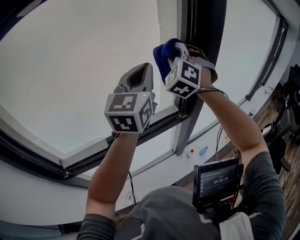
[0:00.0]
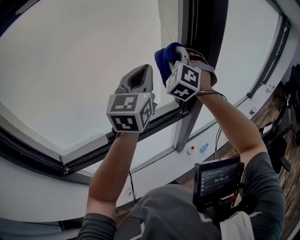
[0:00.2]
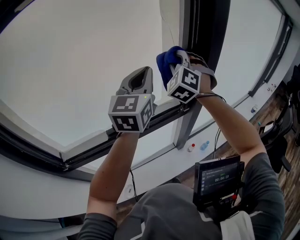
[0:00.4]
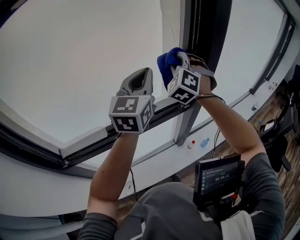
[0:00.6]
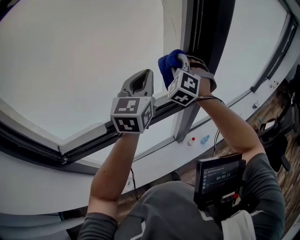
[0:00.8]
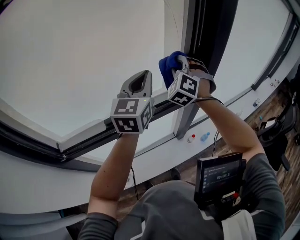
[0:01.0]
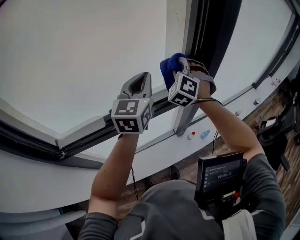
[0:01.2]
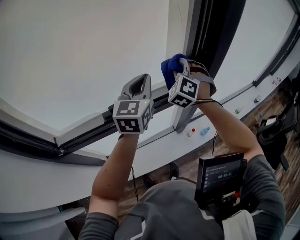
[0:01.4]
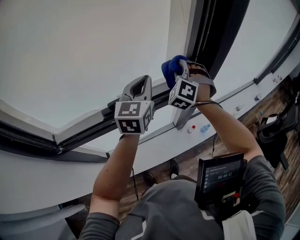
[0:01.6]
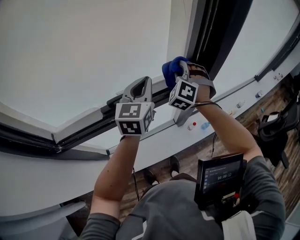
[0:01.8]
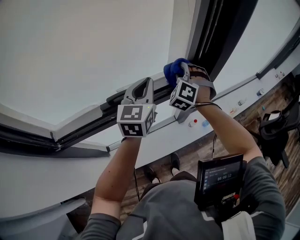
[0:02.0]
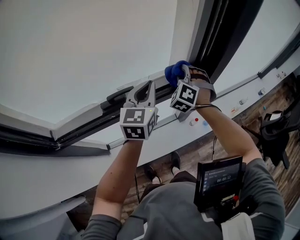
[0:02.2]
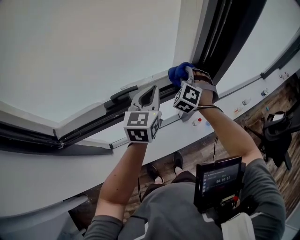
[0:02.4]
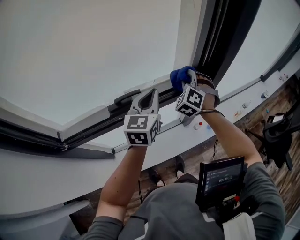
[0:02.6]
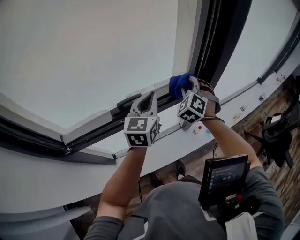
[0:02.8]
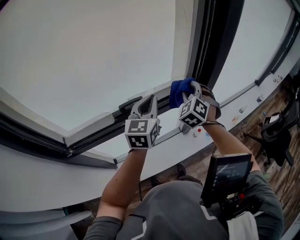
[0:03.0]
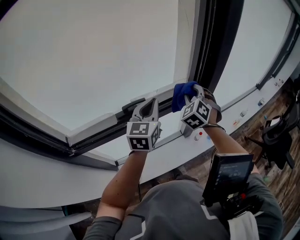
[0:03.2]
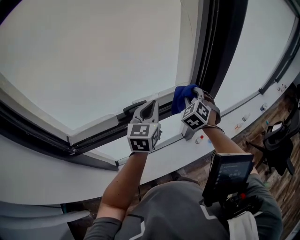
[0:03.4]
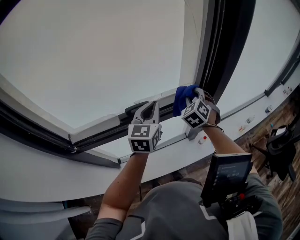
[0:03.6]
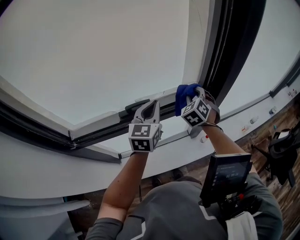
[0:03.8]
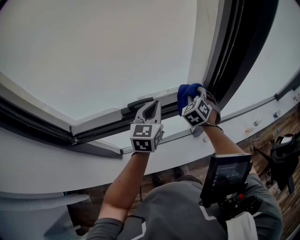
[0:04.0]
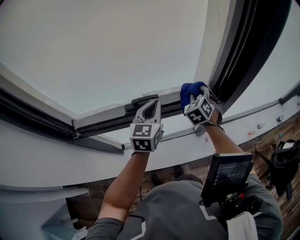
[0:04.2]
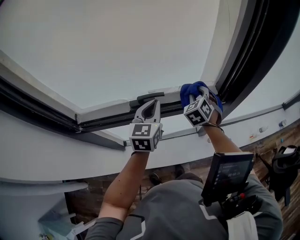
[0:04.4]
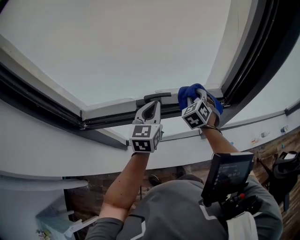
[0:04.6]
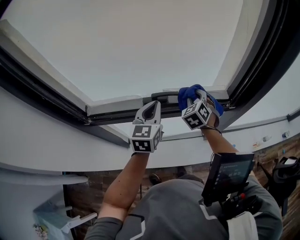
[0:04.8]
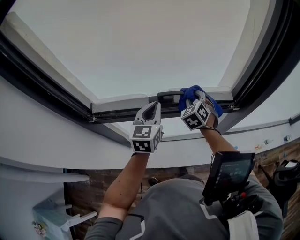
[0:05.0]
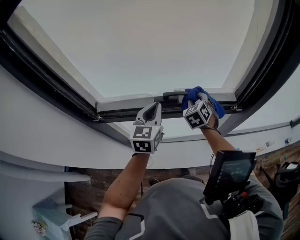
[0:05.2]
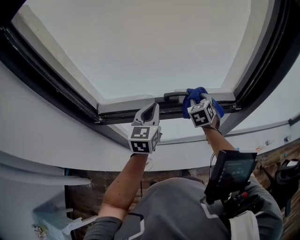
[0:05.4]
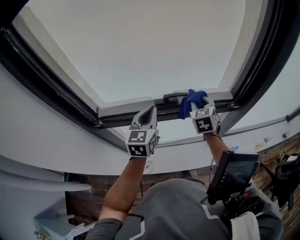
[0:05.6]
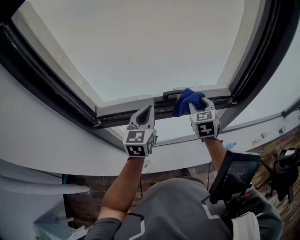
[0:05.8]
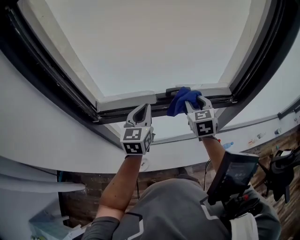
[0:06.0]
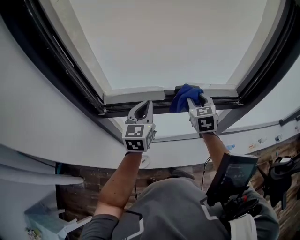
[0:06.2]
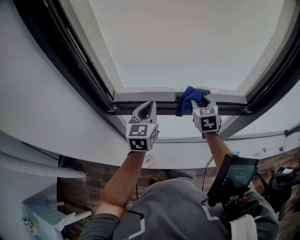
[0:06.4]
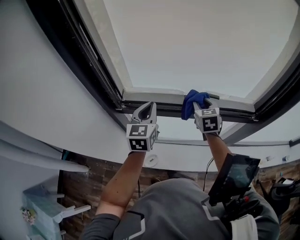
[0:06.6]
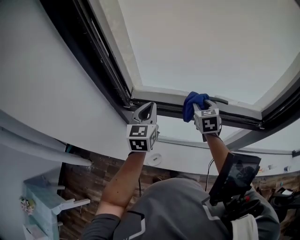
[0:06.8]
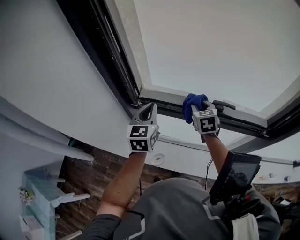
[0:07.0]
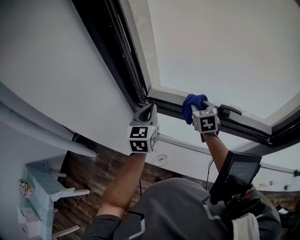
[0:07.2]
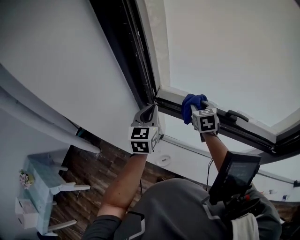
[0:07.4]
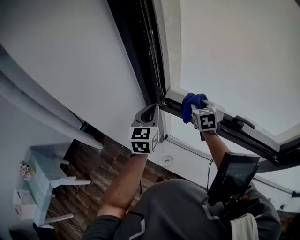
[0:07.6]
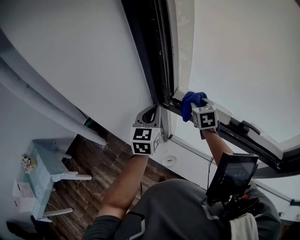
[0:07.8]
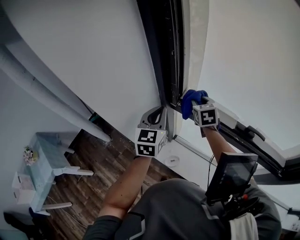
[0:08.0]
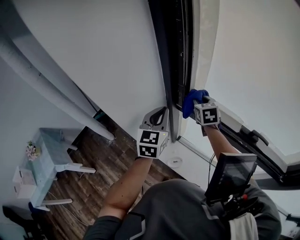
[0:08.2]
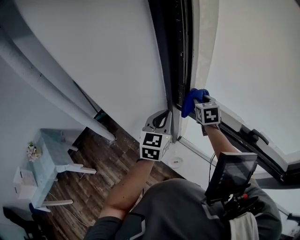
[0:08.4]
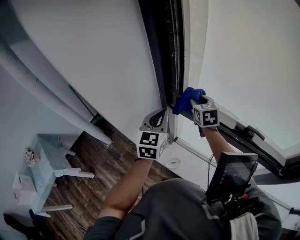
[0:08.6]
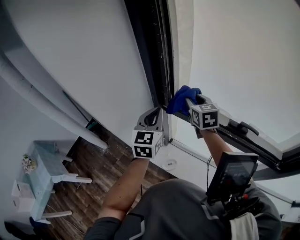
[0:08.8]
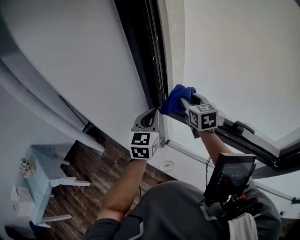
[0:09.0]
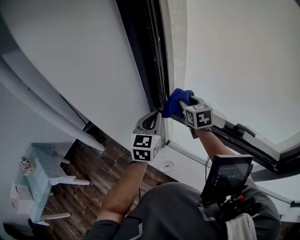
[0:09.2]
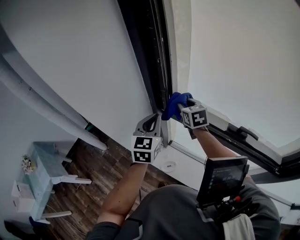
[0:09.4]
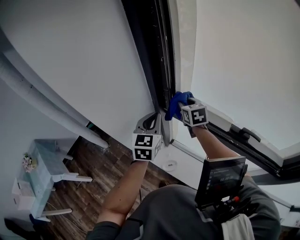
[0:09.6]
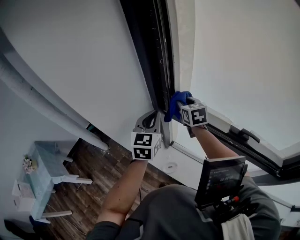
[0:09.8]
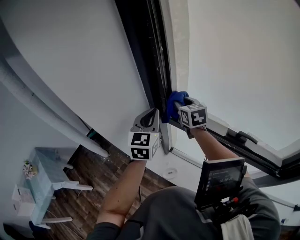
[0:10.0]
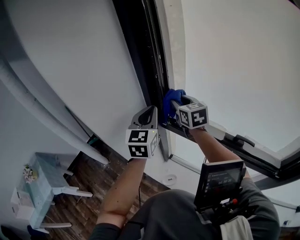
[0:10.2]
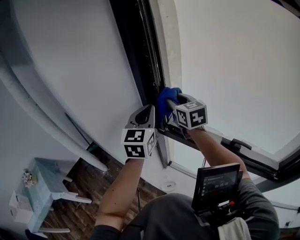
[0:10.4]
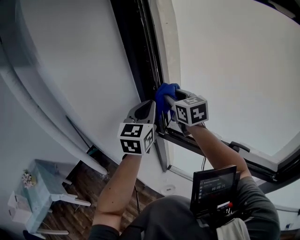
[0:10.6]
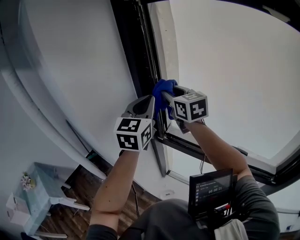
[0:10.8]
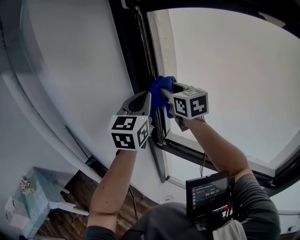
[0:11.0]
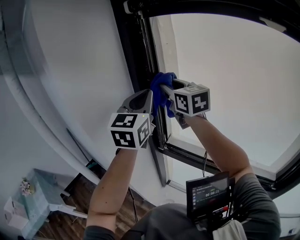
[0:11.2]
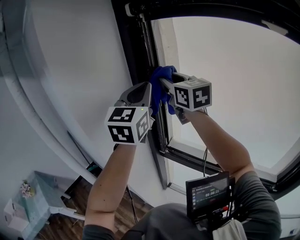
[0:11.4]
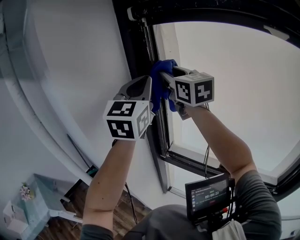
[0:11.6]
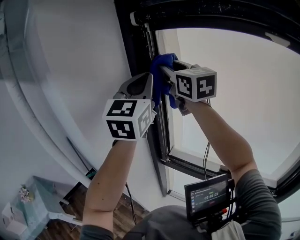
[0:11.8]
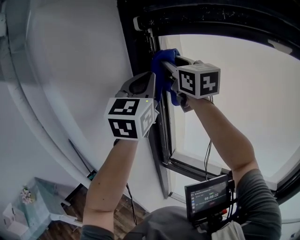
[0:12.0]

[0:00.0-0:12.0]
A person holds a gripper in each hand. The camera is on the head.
0:00.0 to 0:01.6: The two grippers go about 20 cm downward.
0:01.6 to 0:03.0: The two grippers go about 5 cm backward. The right gripper reaches some 10 cm downward, then returns.
0:03.0 to 0:04.4: The left gripper moves to the left and downward, about 10 cm, while the right gripper travels downward, to the left and forward by roughly 10 cm.
0:04.4 to 0:06.0: The right gripper heads to the left, backward and upward, covering some 20 cm, and rotates approximately 30 degrees. Meanwhile the left gripper heads to the left and backward, covering roughly 20 cm.
0:06.0 to 0:07.6: The left gripper shifts by about 25 cm, and changes its angle by approximately 30 degrees; the right gripper ends up some 30 cm from where it was, and rotates roughly 30 degrees.
0:07.6 to 0:09.0: The right gripper is displaced upward and to the left by roughly 10 cm.
0:09.0 to 0:10.4: Both grippers move upward, about 10 cm.
0:10.4 to 0:12.0: The two grippers go some 30 cm upward. The right gripper swivels some 30 degrees, while the left gripper rotates about 20 degrees.

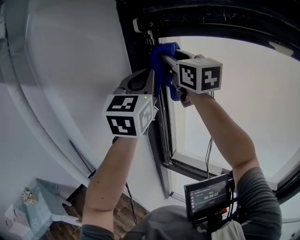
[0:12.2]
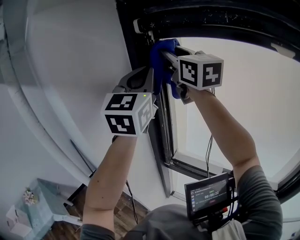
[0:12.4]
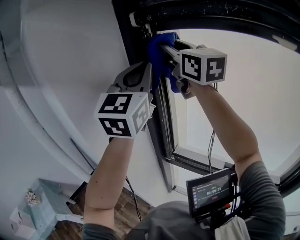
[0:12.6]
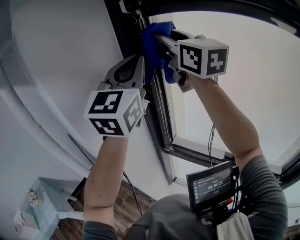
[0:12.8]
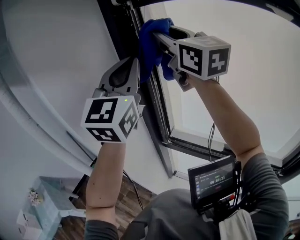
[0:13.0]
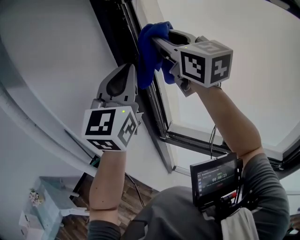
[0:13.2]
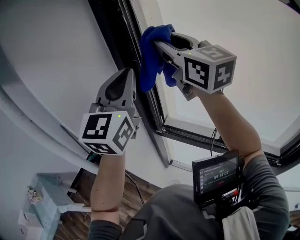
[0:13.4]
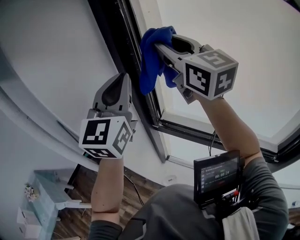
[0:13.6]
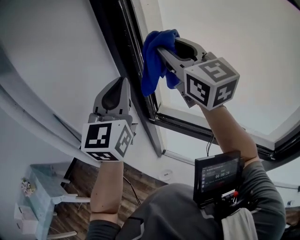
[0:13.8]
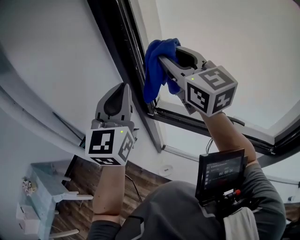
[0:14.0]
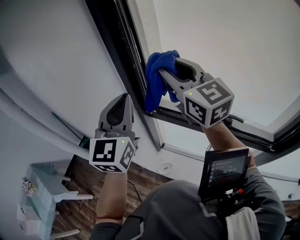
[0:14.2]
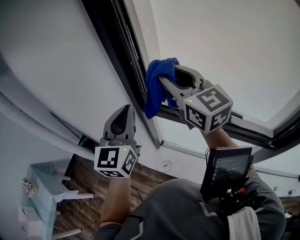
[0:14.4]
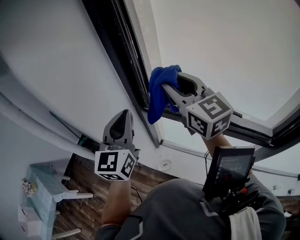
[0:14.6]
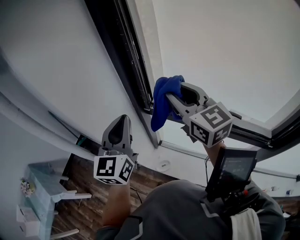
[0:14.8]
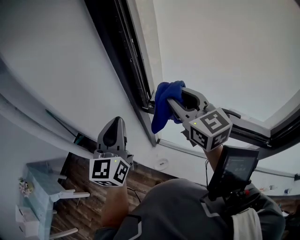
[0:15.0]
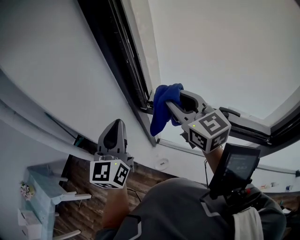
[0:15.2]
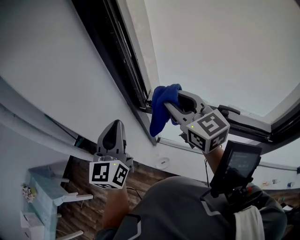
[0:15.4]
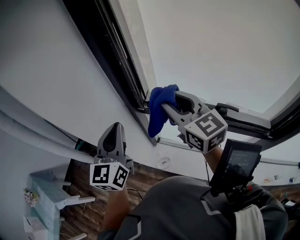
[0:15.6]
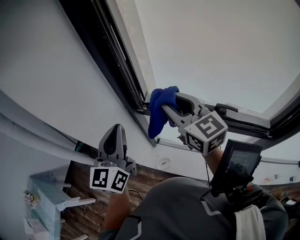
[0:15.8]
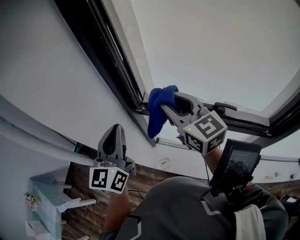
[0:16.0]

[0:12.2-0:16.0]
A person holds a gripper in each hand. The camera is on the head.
0:12.2 to 0:13.4: The left gripper travels downward by approximately 10 cm. The right gripper is displaced downward and backward by roughly 10 cm.
0:13.4 to 0:14.8: The left gripper moves downward, approximately 20 cm. The right gripper goes about 25 cm downward and backward.
0:14.8 to 0:16.0: The grippers make only small movements.

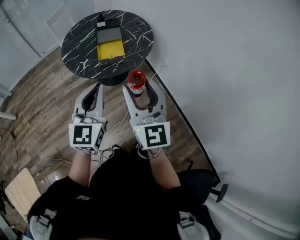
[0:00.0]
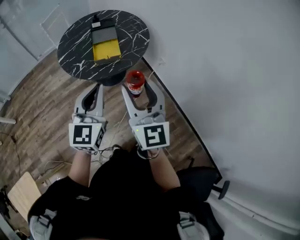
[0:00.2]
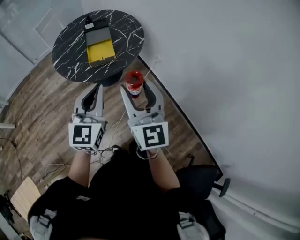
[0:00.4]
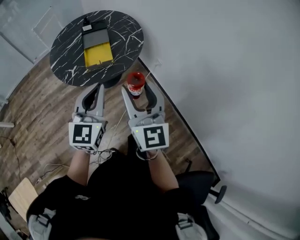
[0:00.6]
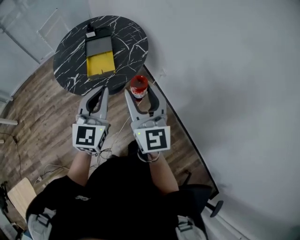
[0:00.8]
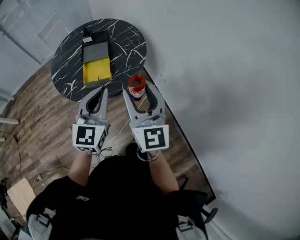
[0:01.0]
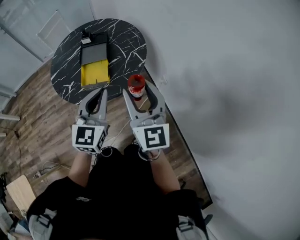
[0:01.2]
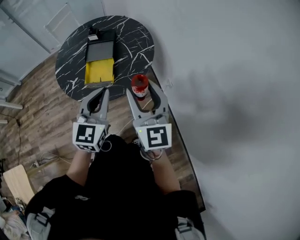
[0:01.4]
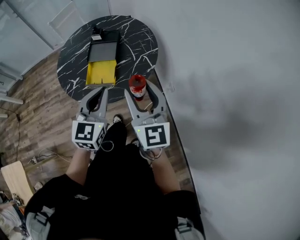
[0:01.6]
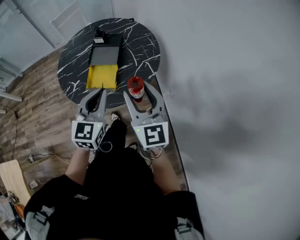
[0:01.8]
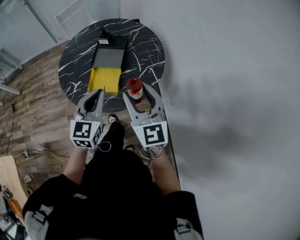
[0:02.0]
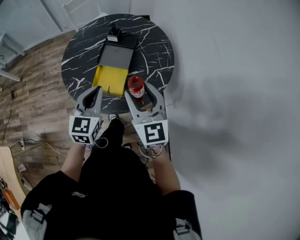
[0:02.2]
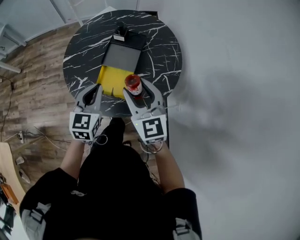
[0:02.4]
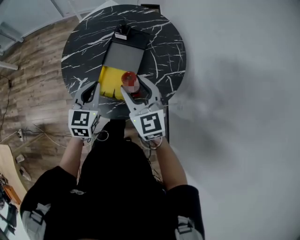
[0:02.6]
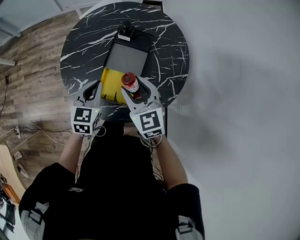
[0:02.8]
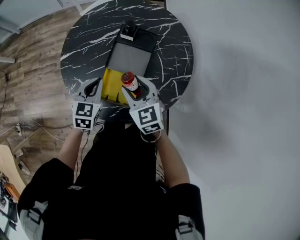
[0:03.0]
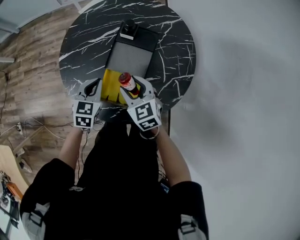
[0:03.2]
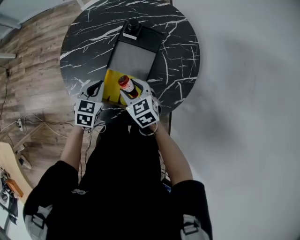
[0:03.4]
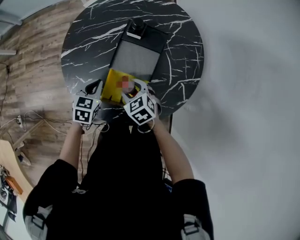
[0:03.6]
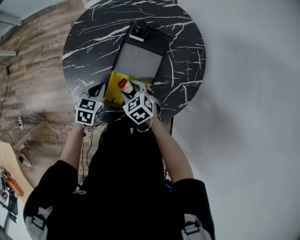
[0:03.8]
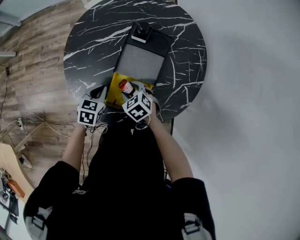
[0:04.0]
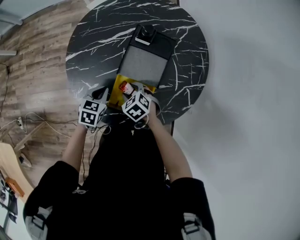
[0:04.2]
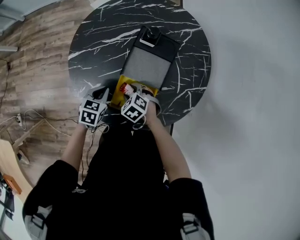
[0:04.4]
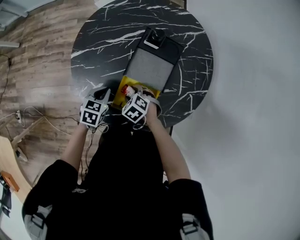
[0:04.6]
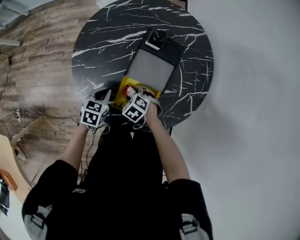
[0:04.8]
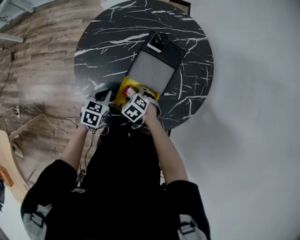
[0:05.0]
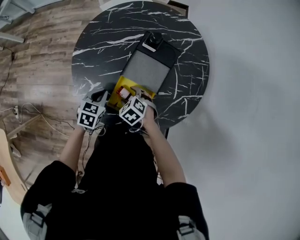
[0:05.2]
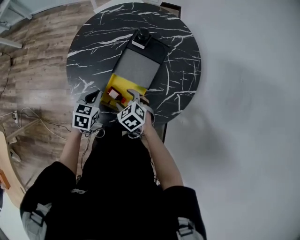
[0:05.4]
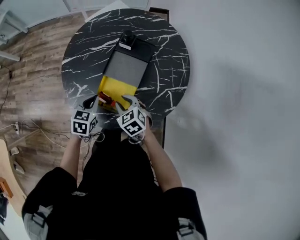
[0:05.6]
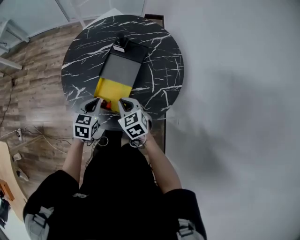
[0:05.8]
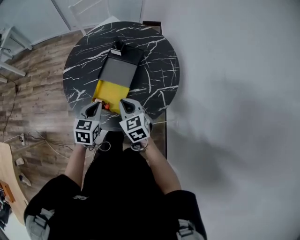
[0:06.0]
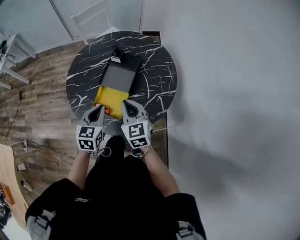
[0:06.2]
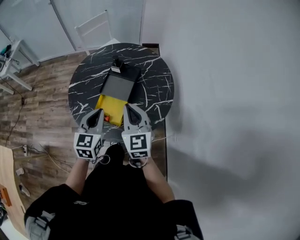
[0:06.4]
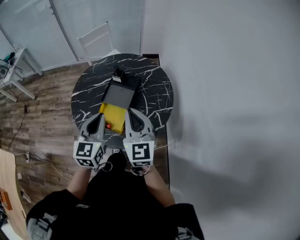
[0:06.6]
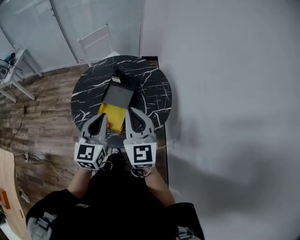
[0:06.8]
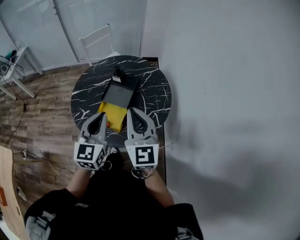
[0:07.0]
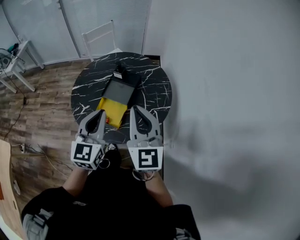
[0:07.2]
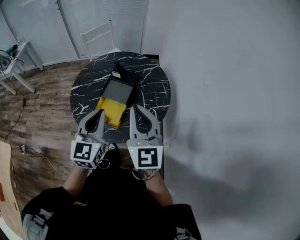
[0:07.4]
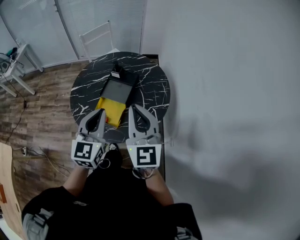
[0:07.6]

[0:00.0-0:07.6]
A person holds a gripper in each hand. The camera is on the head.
0:00.0 to 0:01.6: Both grippers travel together forward and to the right, some 30 cm.
0:01.6 to 0:03.0: Both grippers travel together forward, downward and to the left, roughly 40 cm. The right gripper tips its fingers downward by some 30 degrees. Meanwhile the left gripper changes its angle by roughly 30 degrees.
0:03.0 to 0:04.6: The right gripper moves downward, some 20 cm, and tilts its fingers some 40 degrees downward. Meanwhile the left gripper heads downward and to the left, covering about 15 cm, and rotates about 20 degrees.
0:04.6 to 0:06.0: The left gripper goes approximately 20 cm upward, backward and to the right, while the right gripper shifts about 25 cm upward, to the right and backward, points its fingers roughly 40 degrees further upward, and closes.
0:06.0 to 0:07.6: Both grippers travel together upward, some 25 cm. The left gripper angles its fingers upward, by roughly 30 degrees. Meanwhile the right gripper angles its fingers upward, by some 40 degrees.
